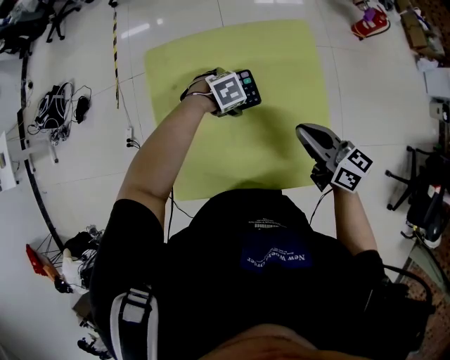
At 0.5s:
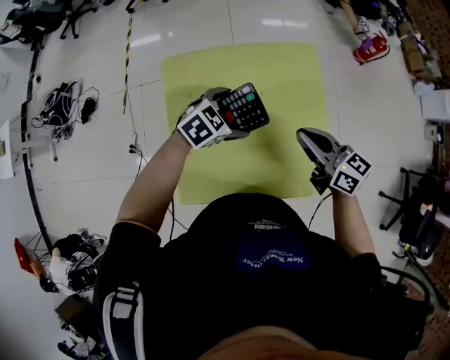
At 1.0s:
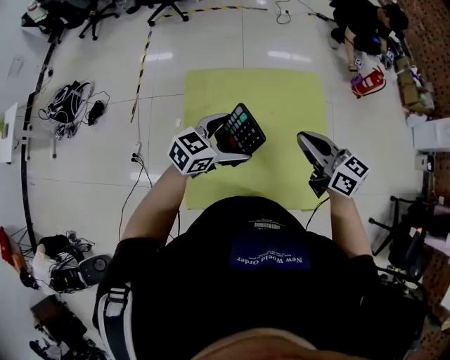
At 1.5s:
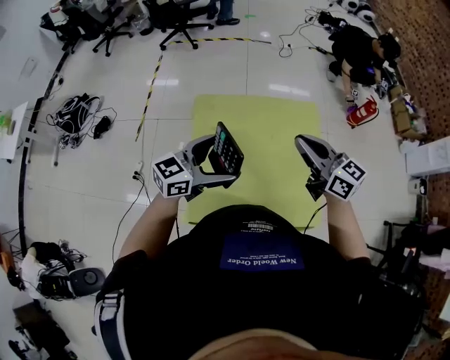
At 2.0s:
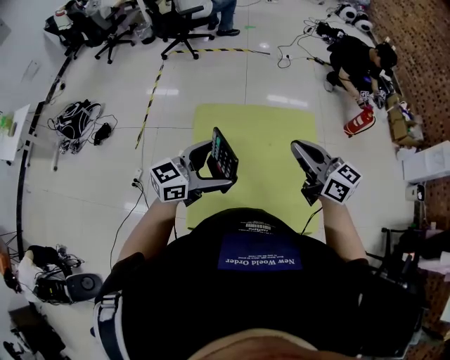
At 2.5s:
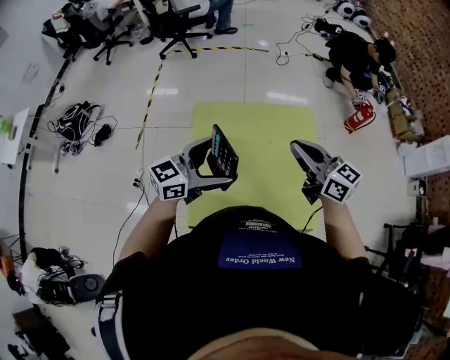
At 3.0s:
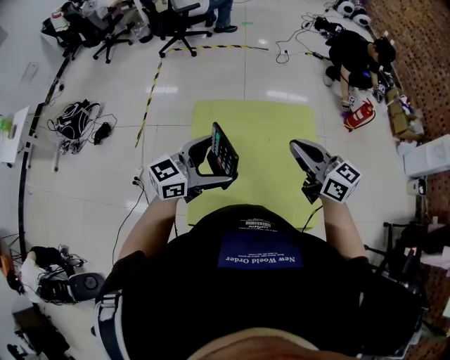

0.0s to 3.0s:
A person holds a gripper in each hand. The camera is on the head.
0.0s to 1.5s: The left gripper moves upward, approximately 30 cm, and points its fingers approximately 70 degrees further upward. Meanwhile the right gripper moves upward, roughly 20 cm, and changes its angle by some 20 degrees.
1.5s to 3.0s: The grippers stay close to where they were, moving slightly.

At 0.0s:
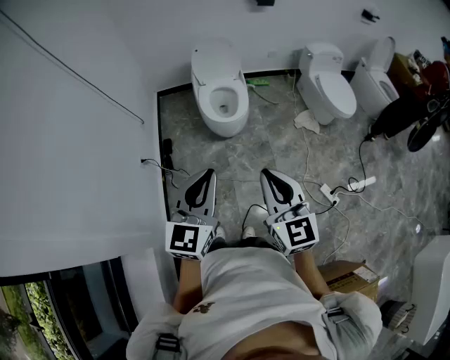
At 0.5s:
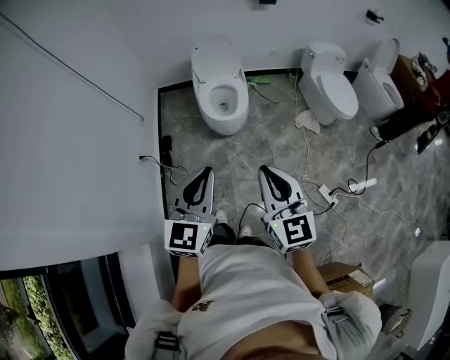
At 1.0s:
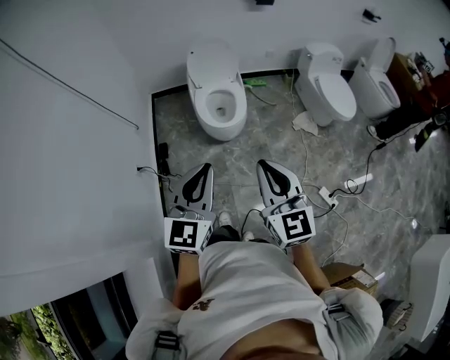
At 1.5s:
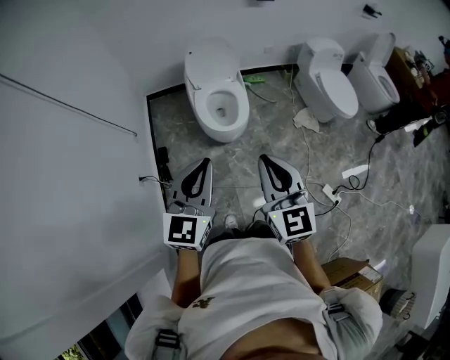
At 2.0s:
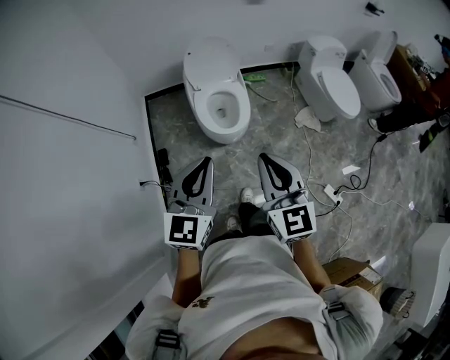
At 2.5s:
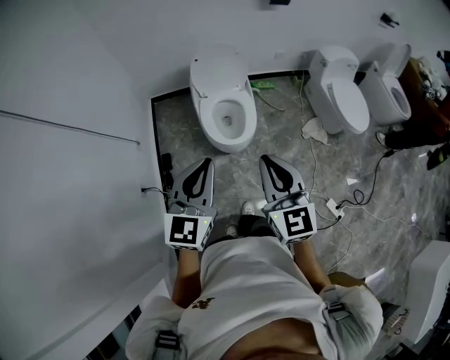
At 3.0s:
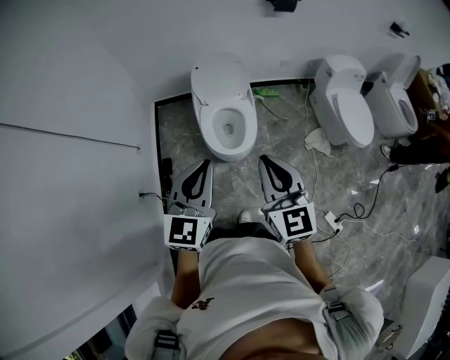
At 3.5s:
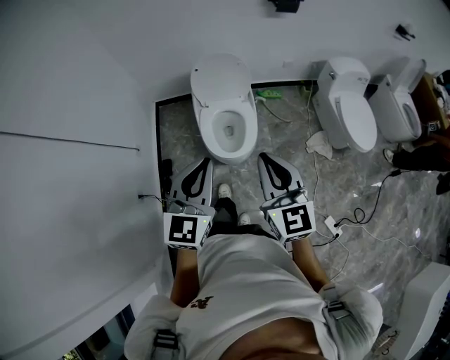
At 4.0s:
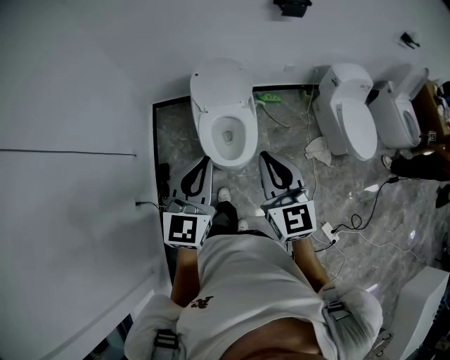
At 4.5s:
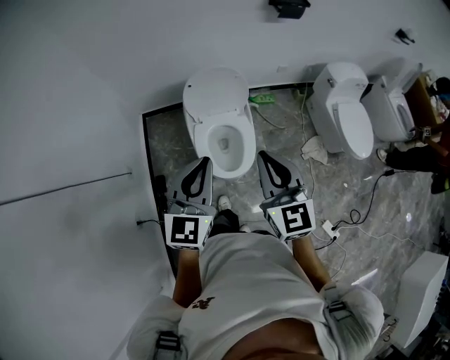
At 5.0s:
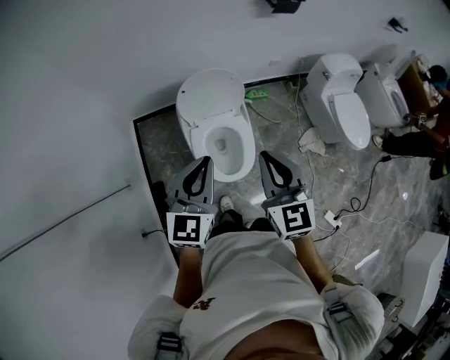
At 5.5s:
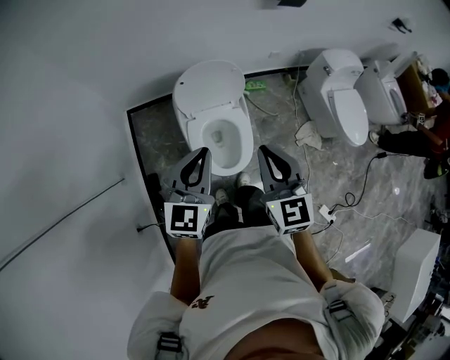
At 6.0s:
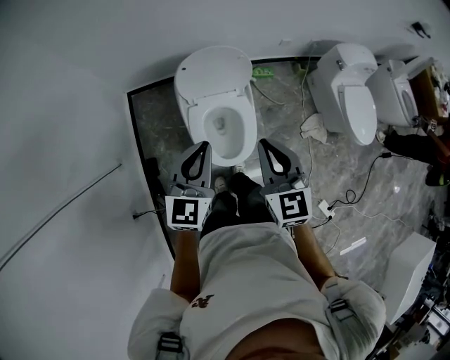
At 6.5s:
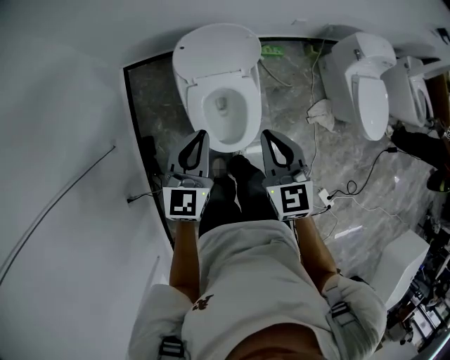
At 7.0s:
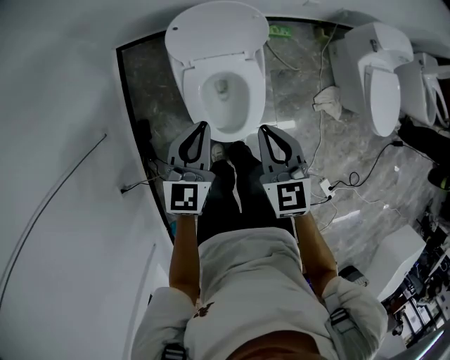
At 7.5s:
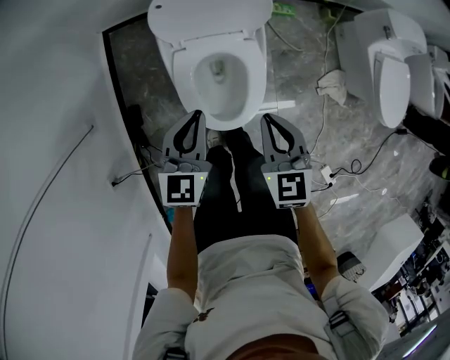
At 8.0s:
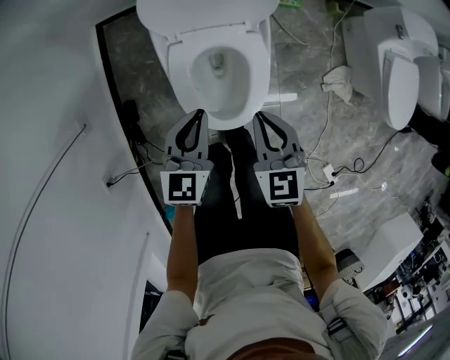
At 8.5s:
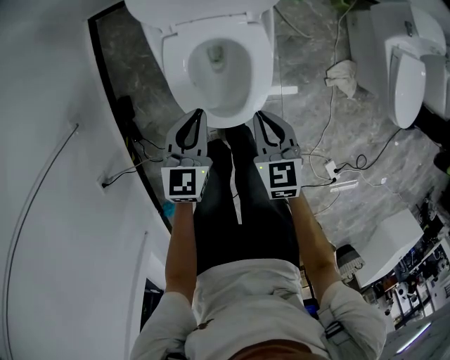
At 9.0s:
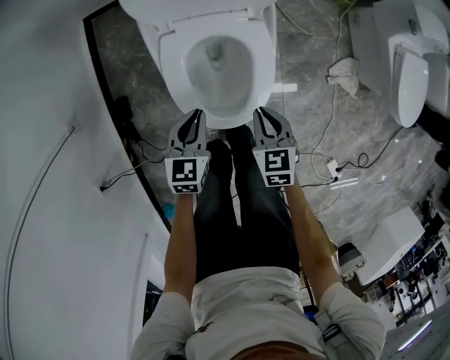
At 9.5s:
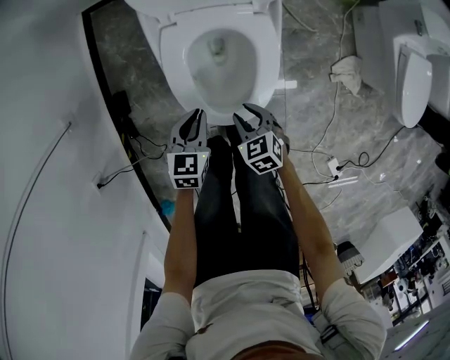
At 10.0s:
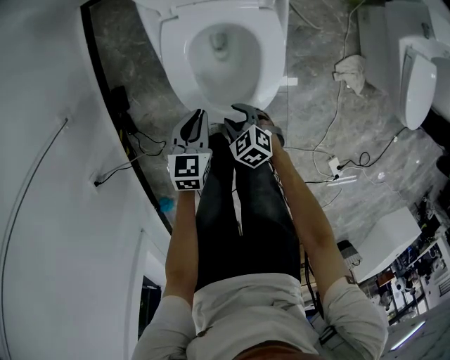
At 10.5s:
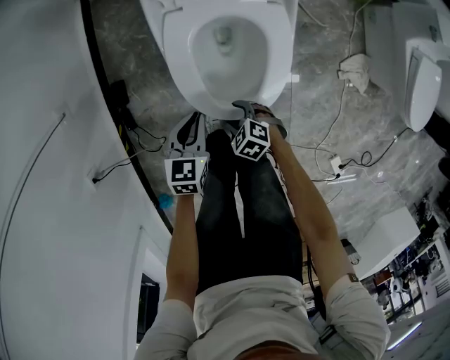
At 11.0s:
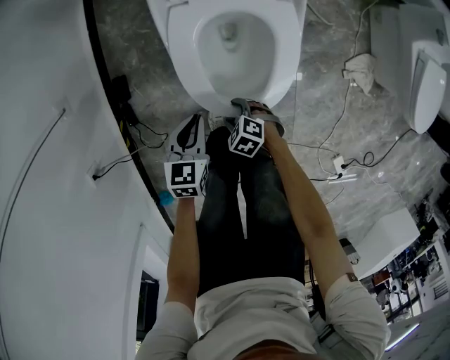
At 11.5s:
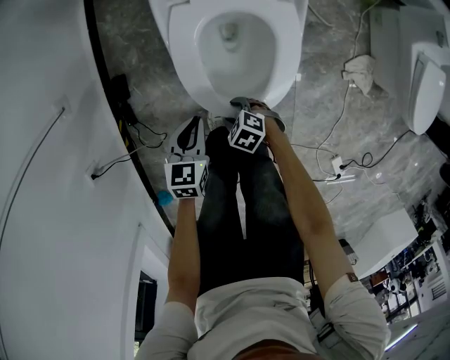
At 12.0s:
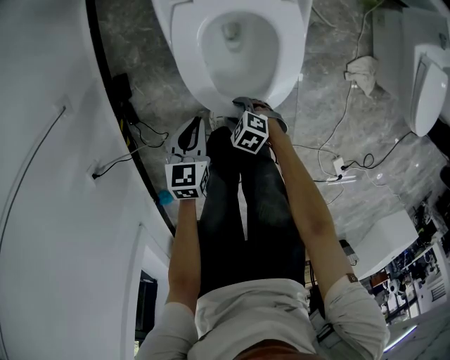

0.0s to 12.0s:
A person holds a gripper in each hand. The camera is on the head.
0.0s to 2.0s: The two grippers go roughly 25 cm forward.
2.0s to 4.0s: The two grippers go approximately 25 cm forward.
4.0s to 6.0s: Both grippers travel together forward and downward, about 25 cm.
6.0s to 8.0s: The grippers both shift downward by some 30 cm.
8.0s to 10.0s: Both grippers travel together downward, approximately 25 cm. The right gripper turns by roughly 40 degrees, and opens.
10.0s to 12.0s: The right gripper shifts about 5 cm downward; the left gripper shifts by some 5 cm.

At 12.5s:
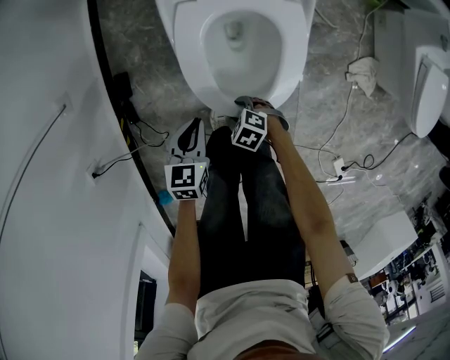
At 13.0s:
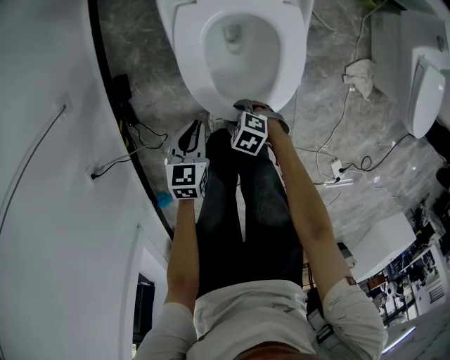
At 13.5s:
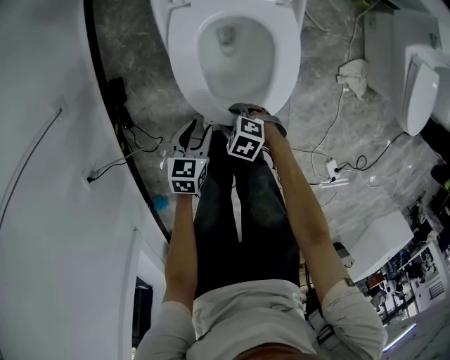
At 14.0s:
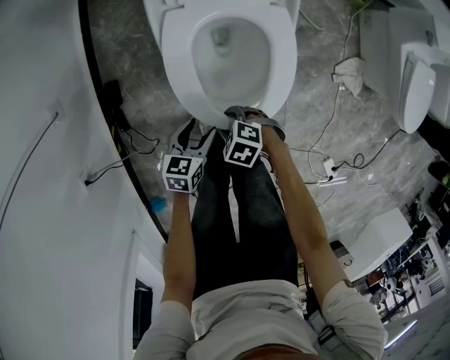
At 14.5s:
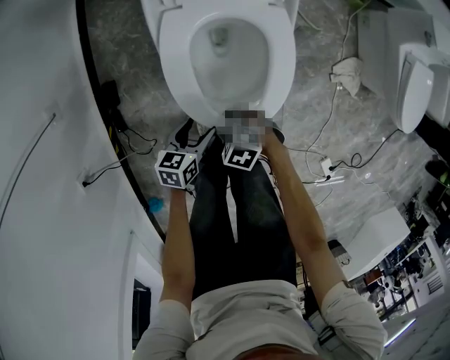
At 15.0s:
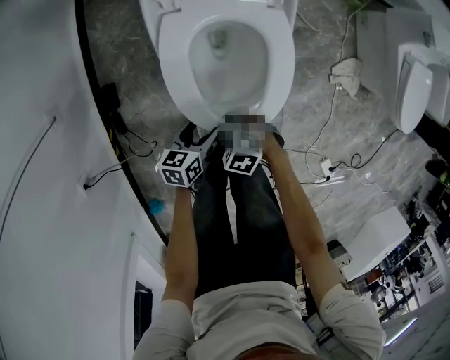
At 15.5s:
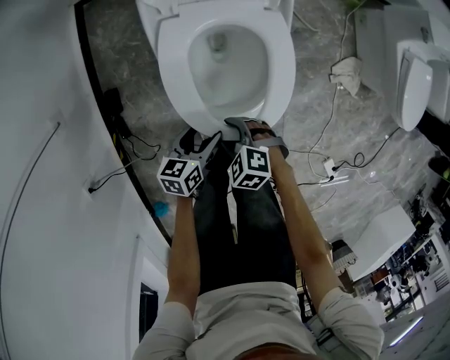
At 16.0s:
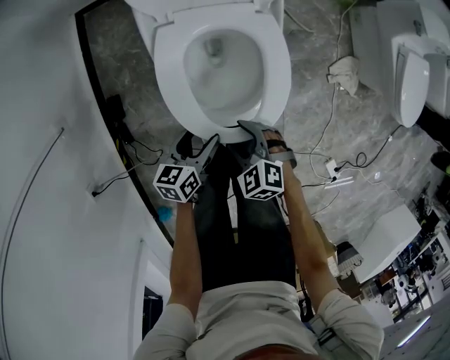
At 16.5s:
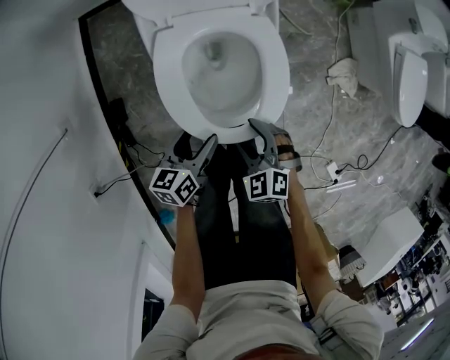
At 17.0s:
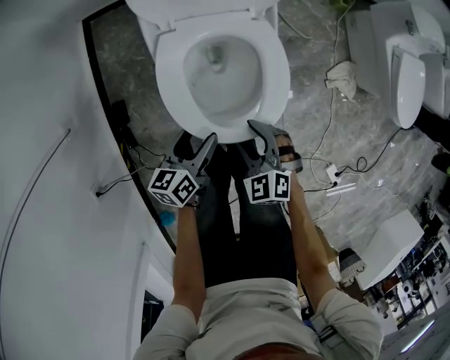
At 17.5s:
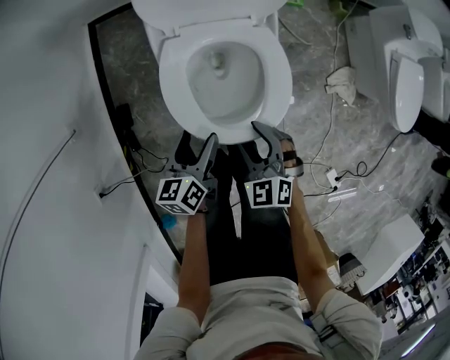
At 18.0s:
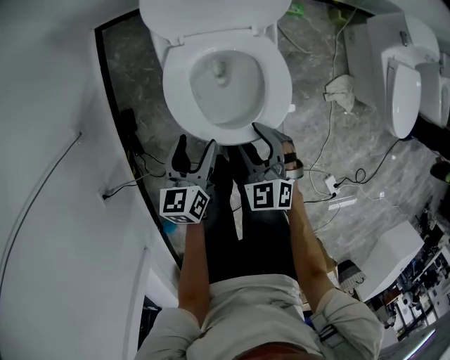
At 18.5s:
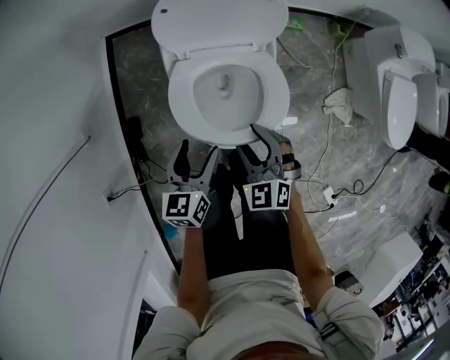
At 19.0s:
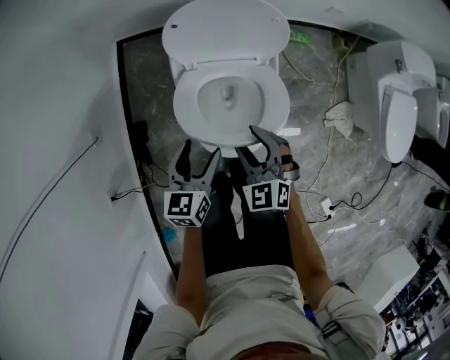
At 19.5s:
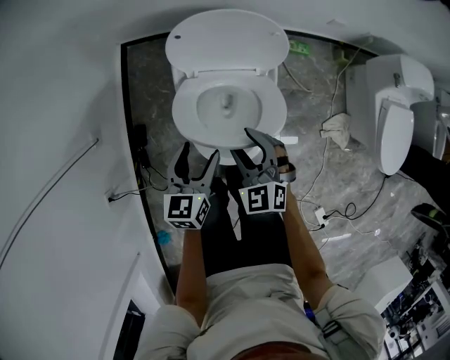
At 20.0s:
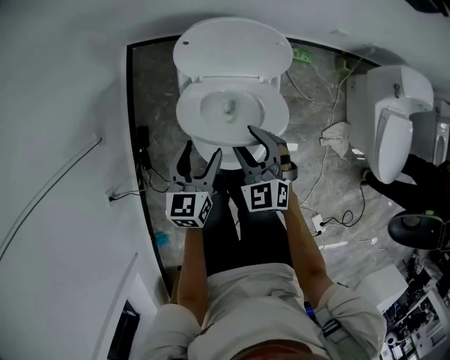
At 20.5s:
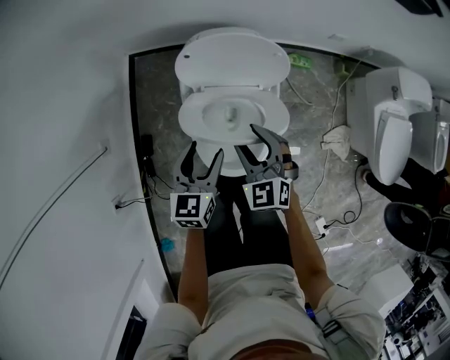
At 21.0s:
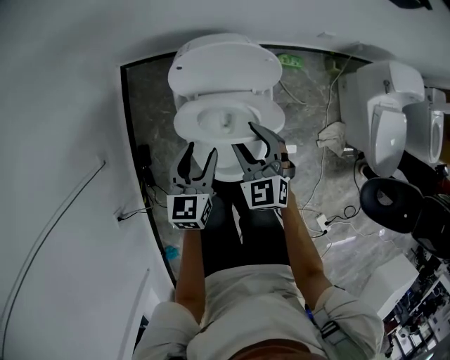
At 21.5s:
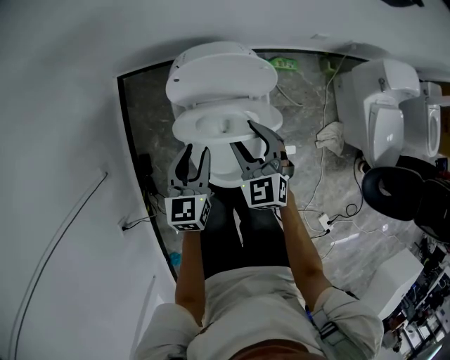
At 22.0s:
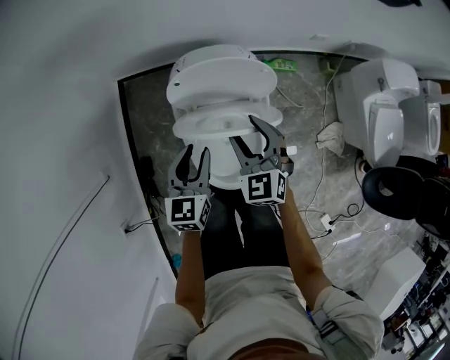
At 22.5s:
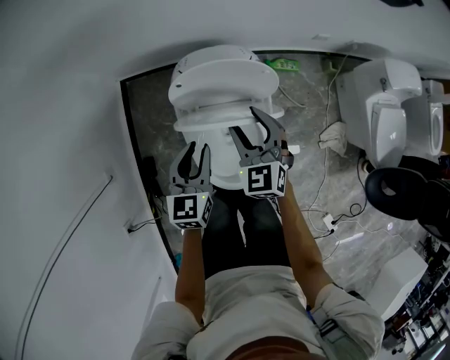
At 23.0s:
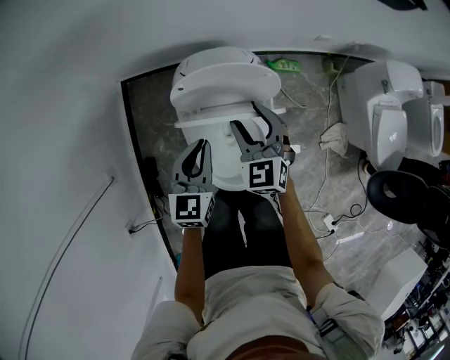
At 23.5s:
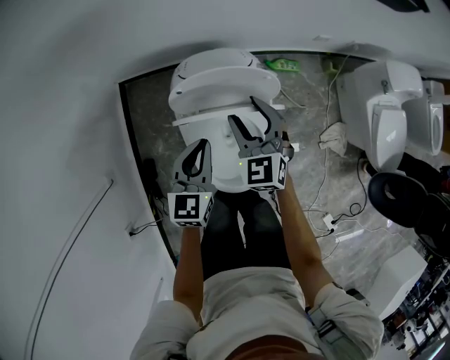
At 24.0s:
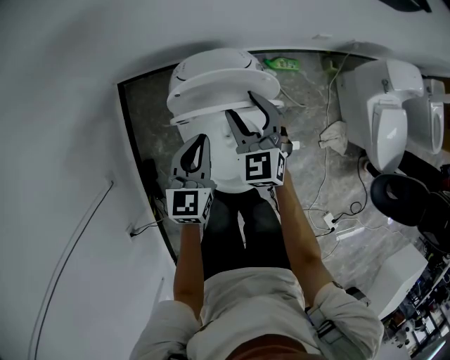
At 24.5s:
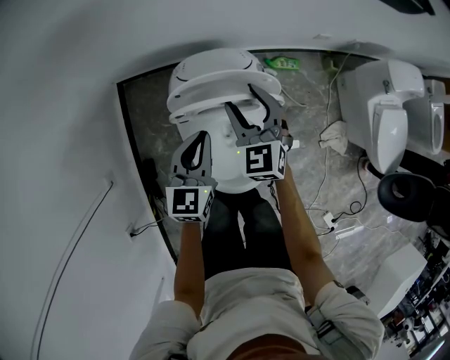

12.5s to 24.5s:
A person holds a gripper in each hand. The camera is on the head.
12.5s to 14.5s: The left gripper ends up approximately 5 cm from where it was, rotates about 20 degrees, and opens. The right gripper shifts about 10 cm upward.
14.5s to 16.5s: Both grippers move upward, about 10 cm. The right gripper swivels some 40 degrees.
16.5s to 18.5s: The right gripper is displaced upward and forward by about 15 cm, while the left gripper goes some 15 cm upward, and swivels some 20 degrees.
18.5s to 20.5s: The grippers both shift forward and upward by about 15 cm.
20.5s to 22.5s: Both grippers travel together forward, some 10 cm. The left gripper closes its fingers.
22.5s to 24.5s: The grippers both shift forward by some 10 cm.
